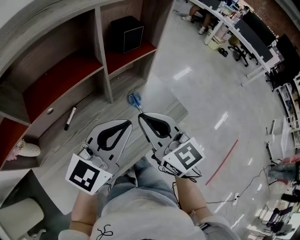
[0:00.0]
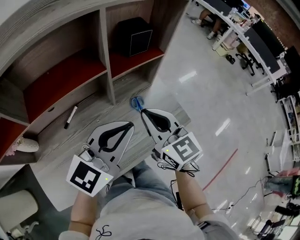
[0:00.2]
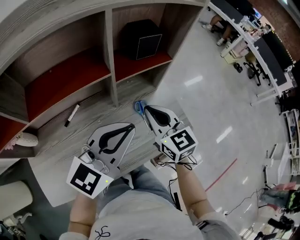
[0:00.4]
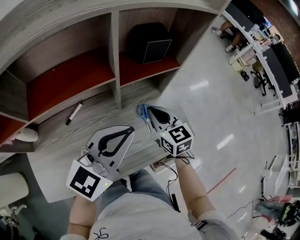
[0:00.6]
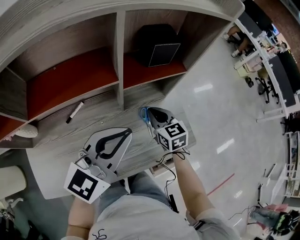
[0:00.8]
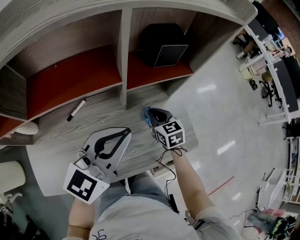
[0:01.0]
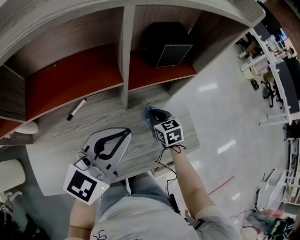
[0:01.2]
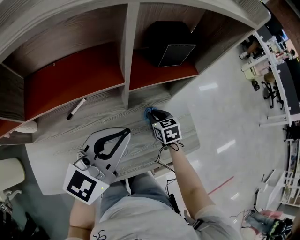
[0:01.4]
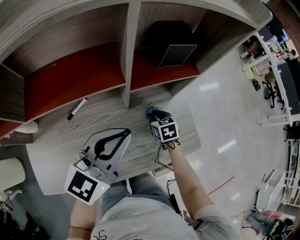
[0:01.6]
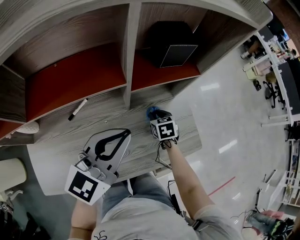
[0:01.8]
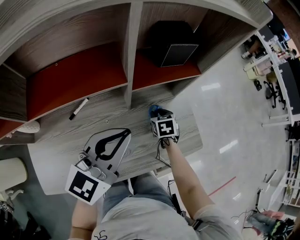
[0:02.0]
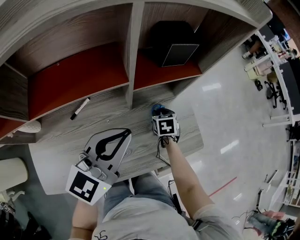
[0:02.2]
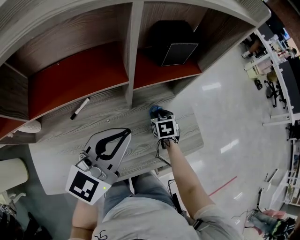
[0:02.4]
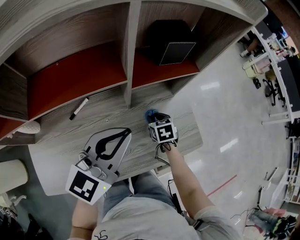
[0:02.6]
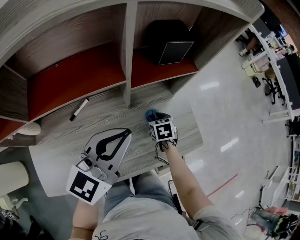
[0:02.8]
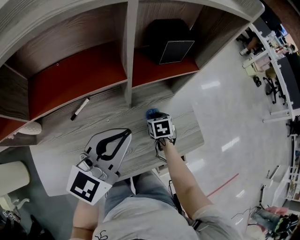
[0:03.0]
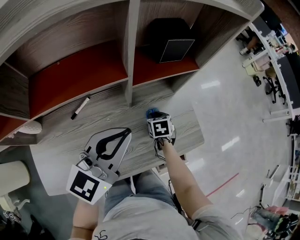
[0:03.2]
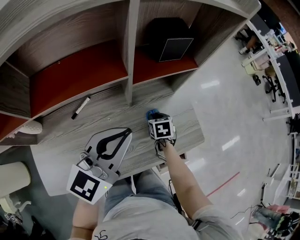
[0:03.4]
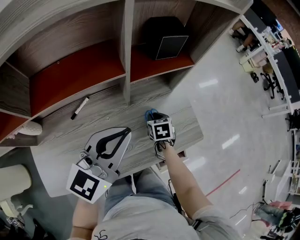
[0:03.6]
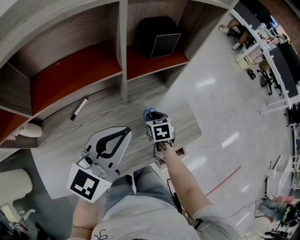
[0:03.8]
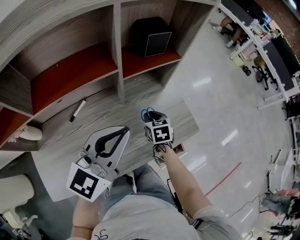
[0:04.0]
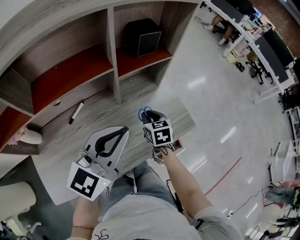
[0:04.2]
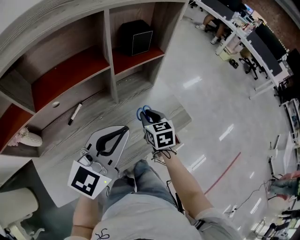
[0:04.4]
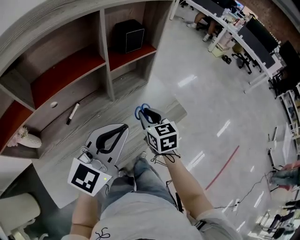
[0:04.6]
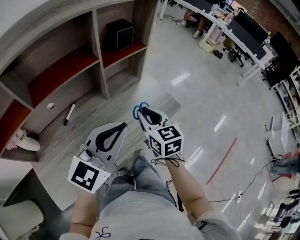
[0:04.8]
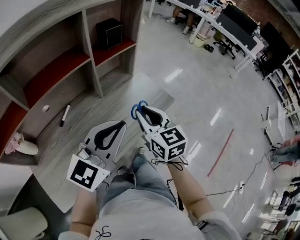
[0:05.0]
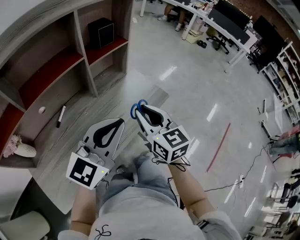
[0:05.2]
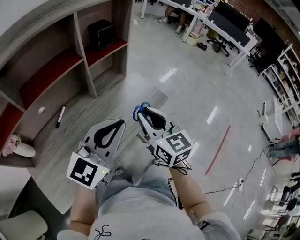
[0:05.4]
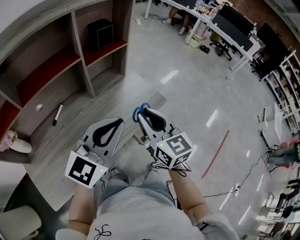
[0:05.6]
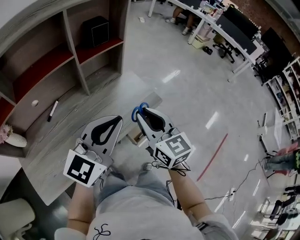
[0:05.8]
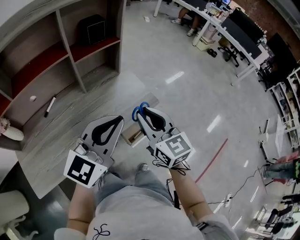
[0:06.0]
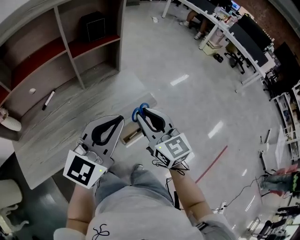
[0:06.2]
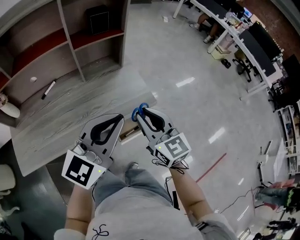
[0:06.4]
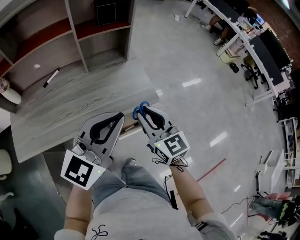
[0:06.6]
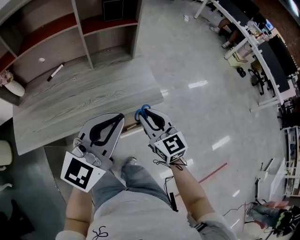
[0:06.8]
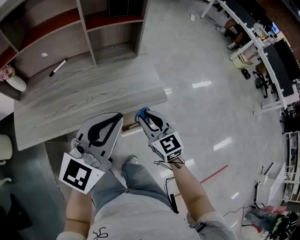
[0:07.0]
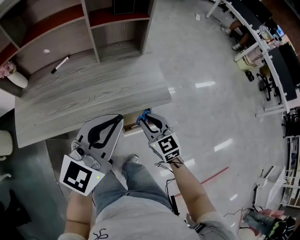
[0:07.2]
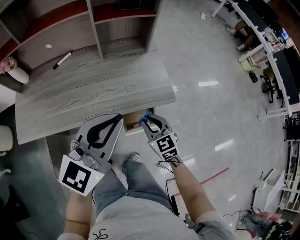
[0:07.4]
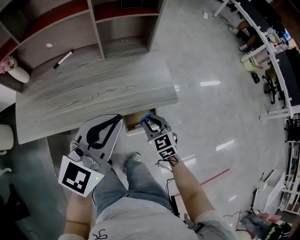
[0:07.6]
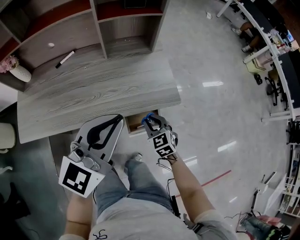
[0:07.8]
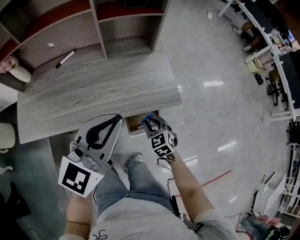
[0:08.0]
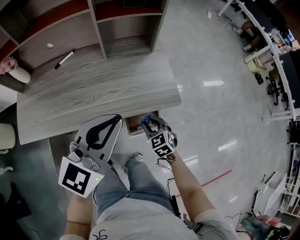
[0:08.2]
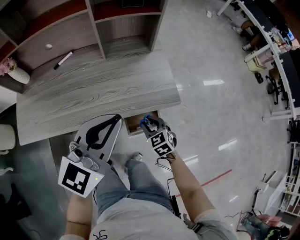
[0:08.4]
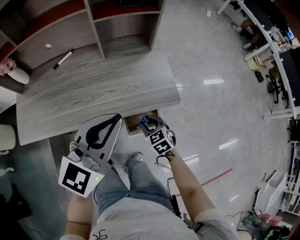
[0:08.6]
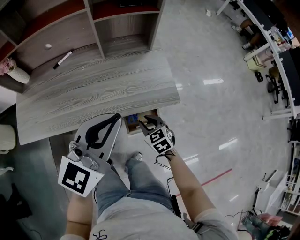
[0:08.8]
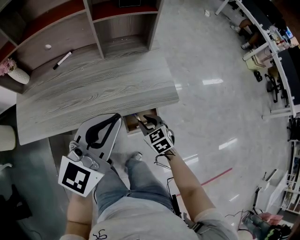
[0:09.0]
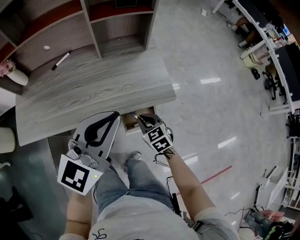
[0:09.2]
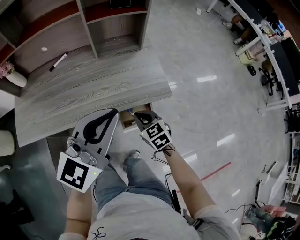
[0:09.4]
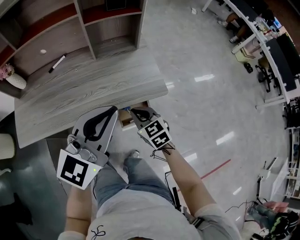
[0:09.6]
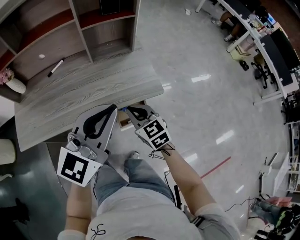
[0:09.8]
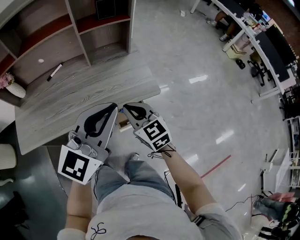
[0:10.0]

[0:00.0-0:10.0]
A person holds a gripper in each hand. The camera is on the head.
0:00.0 to 0:01.4: The right gripper heads downward and forward, covering roughly 35 cm, and tilts its fingers some 40 degrees downward, while the left gripper heads forward, covering roughly 10 cm.
0:01.4 to 0:02.8: The grippers move only a little.
0:02.8 to 0:04.2: The left gripper travels backward by some 5 cm; the right gripper moves upward and backward, approximately 10 cm.
0:04.2 to 0:05.8: The right gripper moves upward, backward and to the right, approximately 30 cm, and tilts its fingers roughly 30 degrees upward. Meanwhile the left gripper heads to the right and backward, covering roughly 15 cm.
0:05.8 to 0:07.2: The left gripper shifts by some 10 cm, and turns by approximately 20 degrees, while the right gripper shifts roughly 20 cm downward, and rotates approximately 30 degrees.
0:07.2 to 0:08.6: The right gripper is displaced downward by some 15 cm, and rotates approximately 20 degrees.
0:08.6 to 0:10.0: The left gripper heads backward and upward, covering roughly 10 cm; the right gripper shifts approximately 20 cm upward, turns by approximately 30 degrees, and closes.

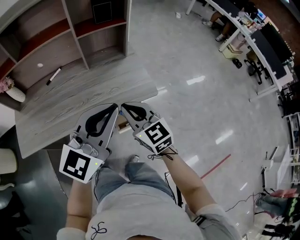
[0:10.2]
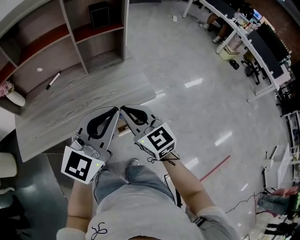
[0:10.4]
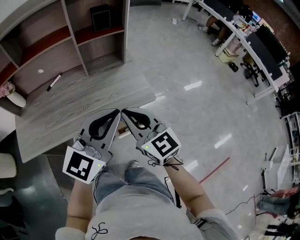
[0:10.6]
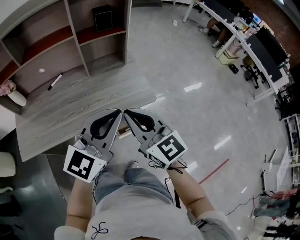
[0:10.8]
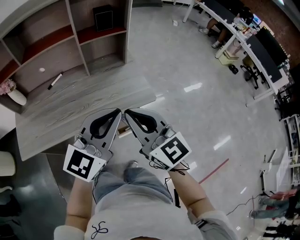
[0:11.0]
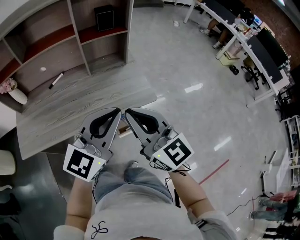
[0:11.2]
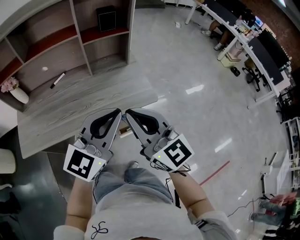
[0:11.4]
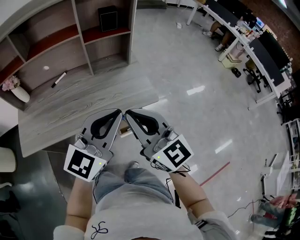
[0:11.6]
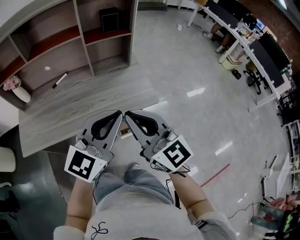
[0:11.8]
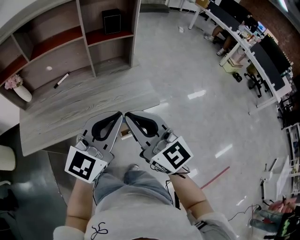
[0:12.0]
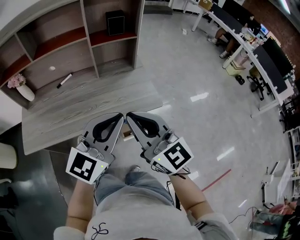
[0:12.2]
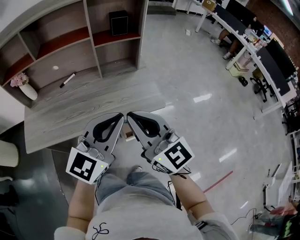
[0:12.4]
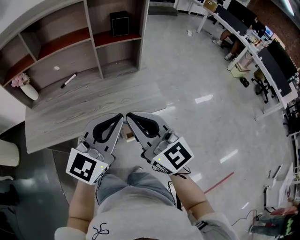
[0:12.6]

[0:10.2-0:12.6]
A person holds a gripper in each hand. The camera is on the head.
0:10.2 to 0:11.4: The right gripper moves upward and backward, some 15 cm.
0:11.4 to 0:12.6: The grippers make only small movements.

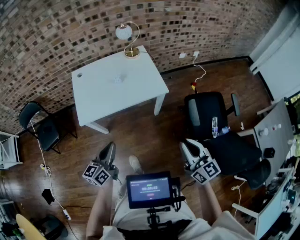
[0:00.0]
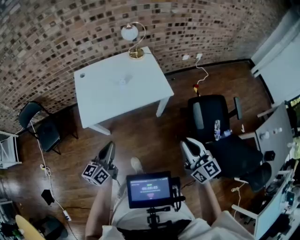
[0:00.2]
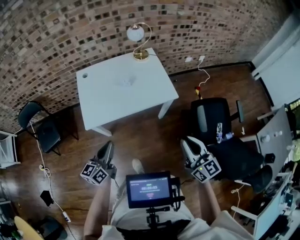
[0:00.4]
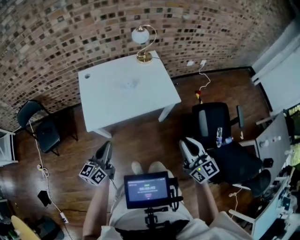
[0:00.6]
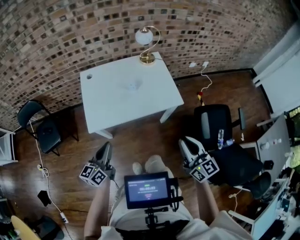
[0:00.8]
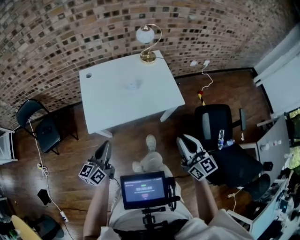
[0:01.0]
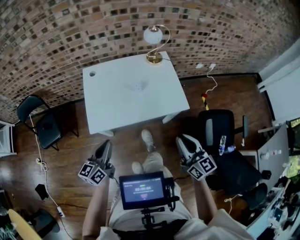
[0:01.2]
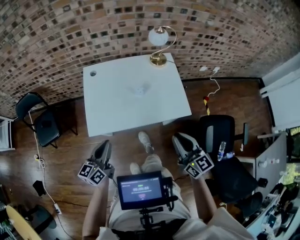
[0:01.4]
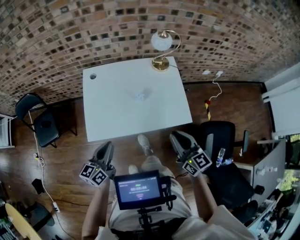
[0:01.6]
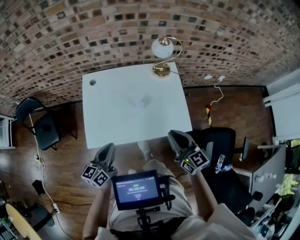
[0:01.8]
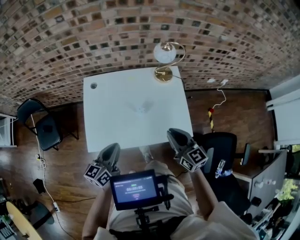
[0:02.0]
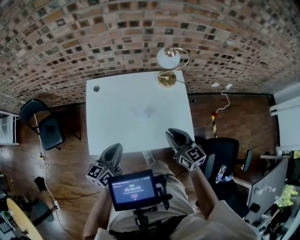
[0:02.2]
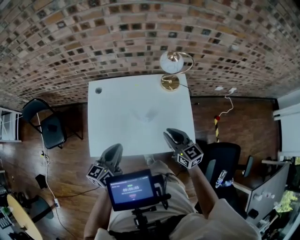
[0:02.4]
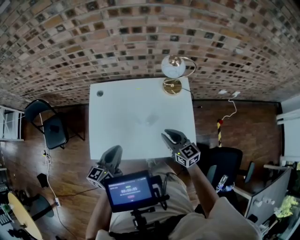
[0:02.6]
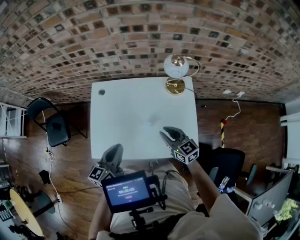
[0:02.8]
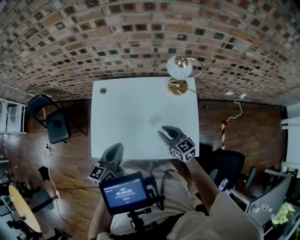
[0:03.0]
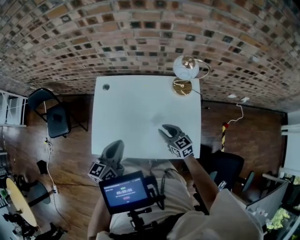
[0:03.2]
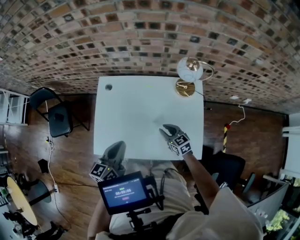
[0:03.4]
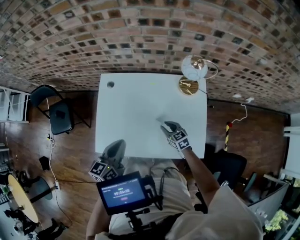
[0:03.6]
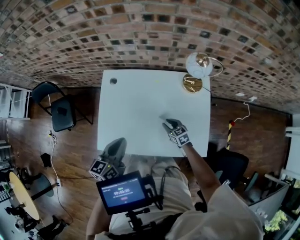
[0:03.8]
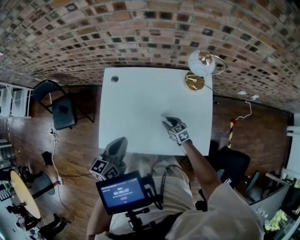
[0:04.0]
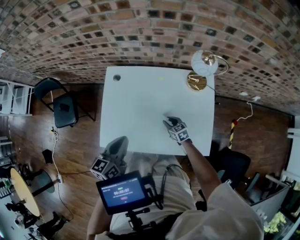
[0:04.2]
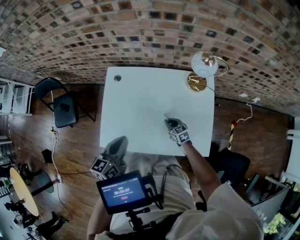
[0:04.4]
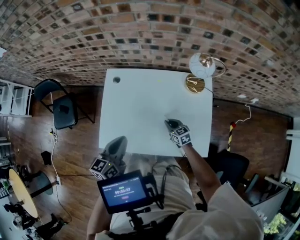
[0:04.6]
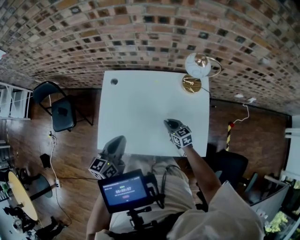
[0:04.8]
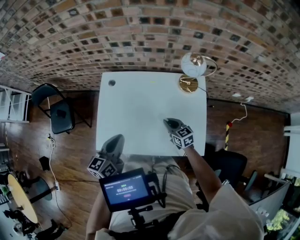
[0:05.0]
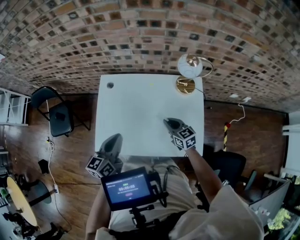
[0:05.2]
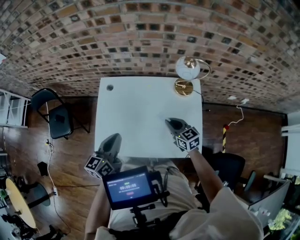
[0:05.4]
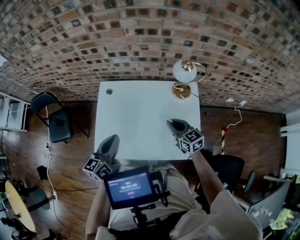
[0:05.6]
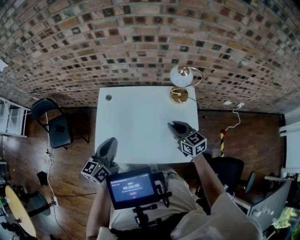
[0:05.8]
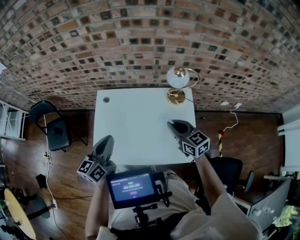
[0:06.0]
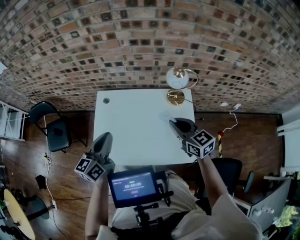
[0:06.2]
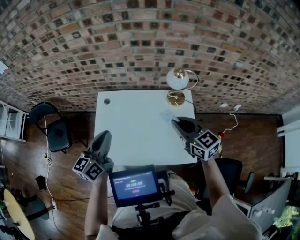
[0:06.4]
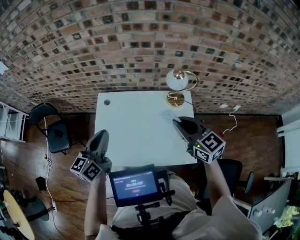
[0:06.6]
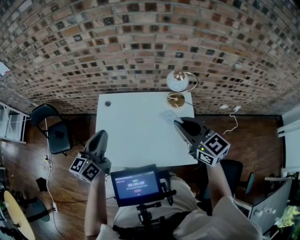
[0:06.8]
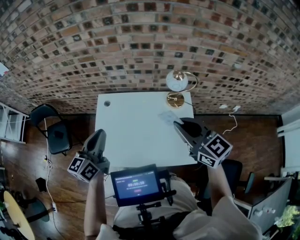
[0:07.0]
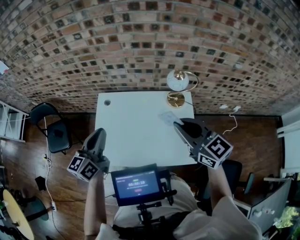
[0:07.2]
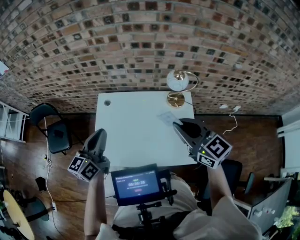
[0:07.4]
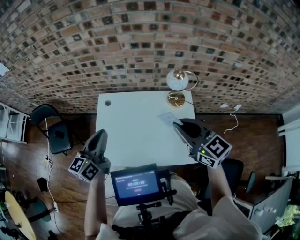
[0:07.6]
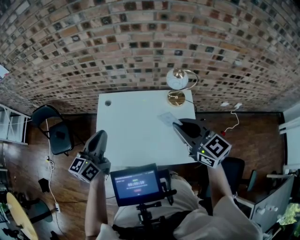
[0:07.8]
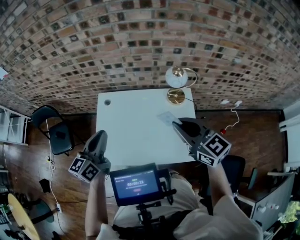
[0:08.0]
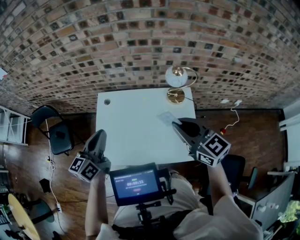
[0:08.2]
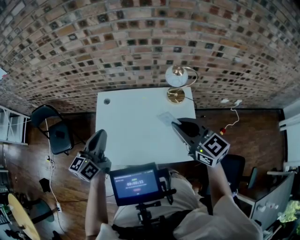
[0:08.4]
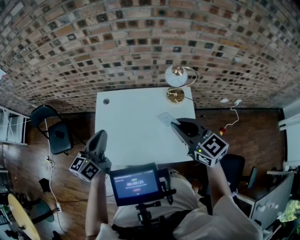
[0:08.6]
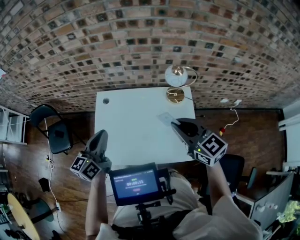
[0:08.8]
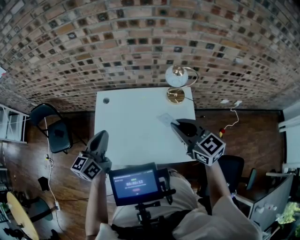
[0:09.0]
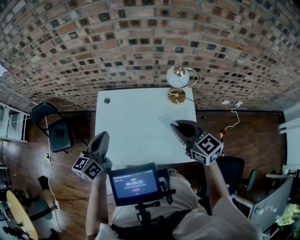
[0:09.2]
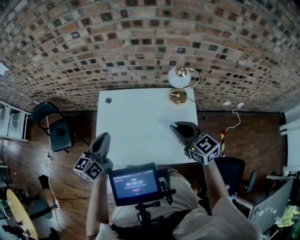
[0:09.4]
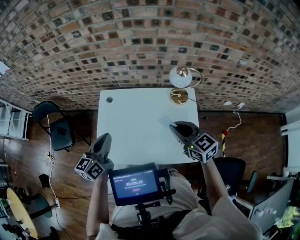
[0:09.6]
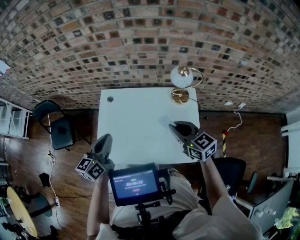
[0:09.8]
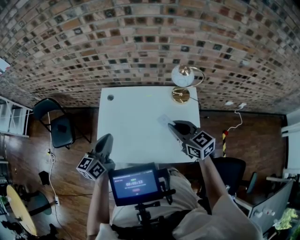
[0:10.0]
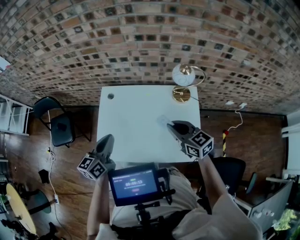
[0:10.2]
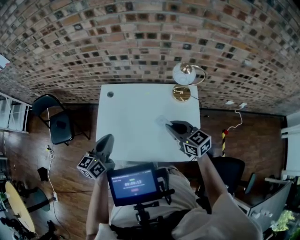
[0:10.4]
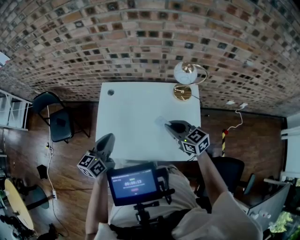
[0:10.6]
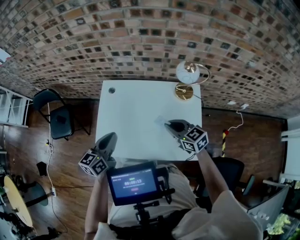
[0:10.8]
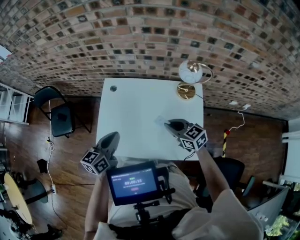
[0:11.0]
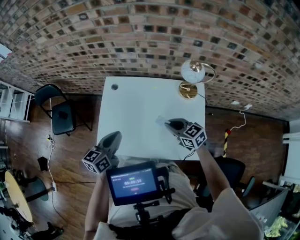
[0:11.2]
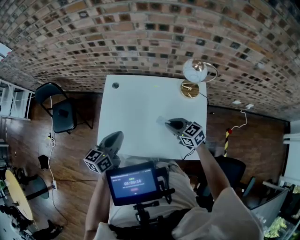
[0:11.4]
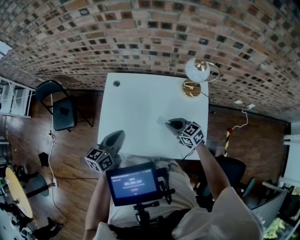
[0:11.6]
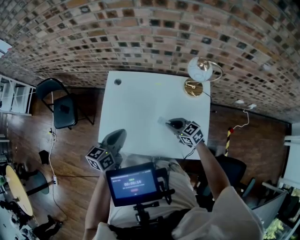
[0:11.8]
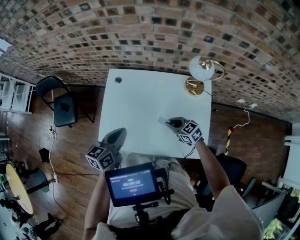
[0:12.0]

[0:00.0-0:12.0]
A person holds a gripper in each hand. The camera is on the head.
0:00.0 to 0:01.6: The two grippers go about 30 cm forward and to the left.
0:01.6 to 0:03.0: The right gripper goes approximately 30 cm forward and downward, and turns by about 20 degrees, while the left gripper moves forward and to the right, roughly 20 cm.
0:03.0 to 0:04.4: The right gripper goes roughly 20 cm downward, and closes up, while the left gripper shifts by about 5 cm.
0:04.4 to 0:06.0: The left gripper travels upward by about 10 cm; the right gripper is displaced upward by about 35 cm, and turns by roughly 20 degrees.
0:06.0 to 0:07.6: The left gripper shifts about 5 cm upward; the right gripper travels upward by approximately 15 cm.
0:07.6 to 0:09.0: The grippers move only a little.
0:09.0 to 0:10.4: The right gripper shifts about 10 cm downward; the left gripper moves downward, approximately 5 cm.
0:10.4 to 0:12.0: The left gripper travels downward by roughly 5 cm; the right gripper travels downward by approximately 20 cm.
